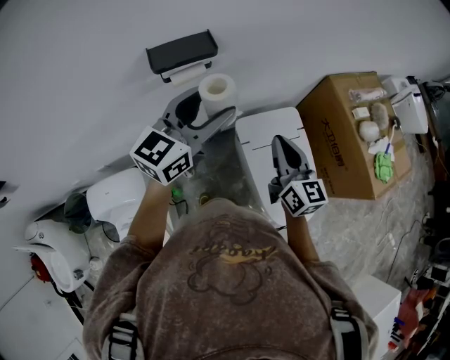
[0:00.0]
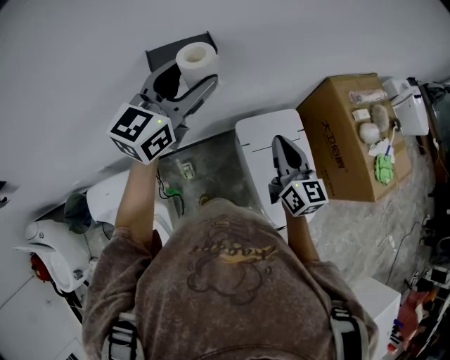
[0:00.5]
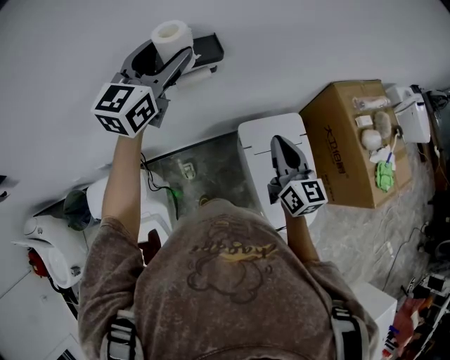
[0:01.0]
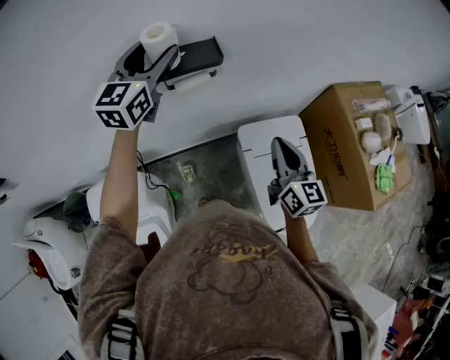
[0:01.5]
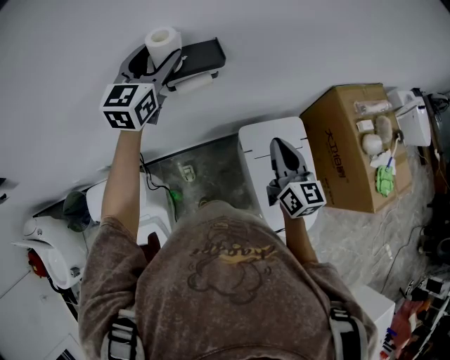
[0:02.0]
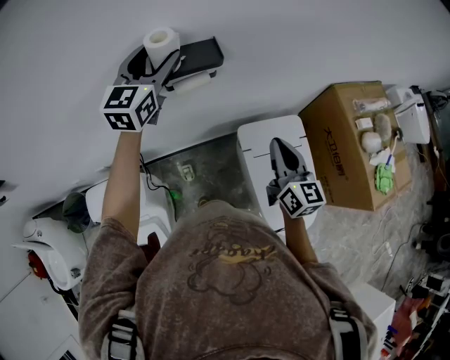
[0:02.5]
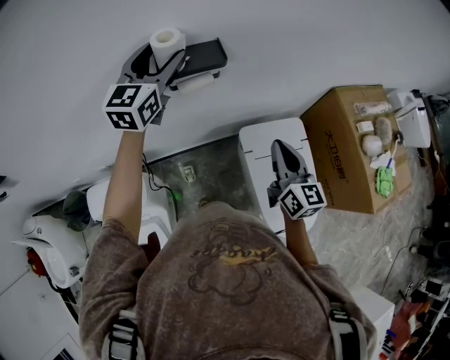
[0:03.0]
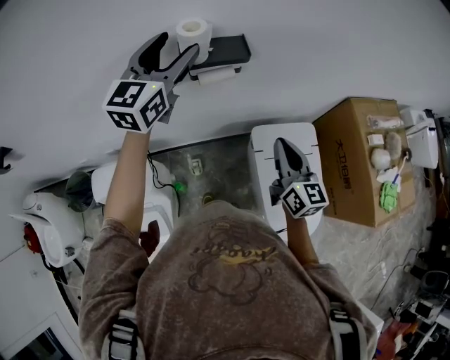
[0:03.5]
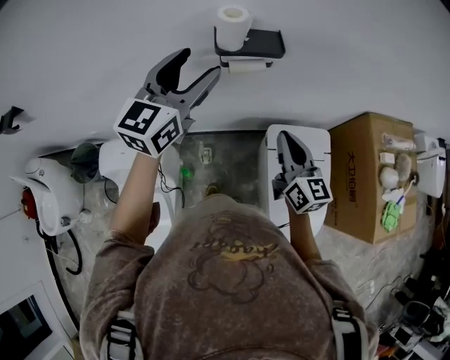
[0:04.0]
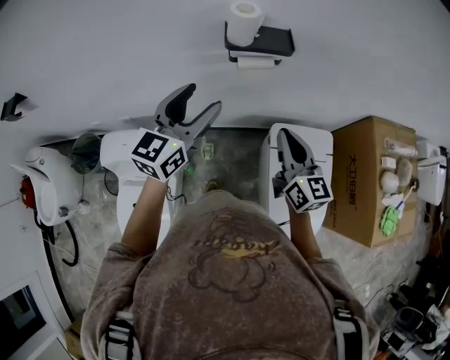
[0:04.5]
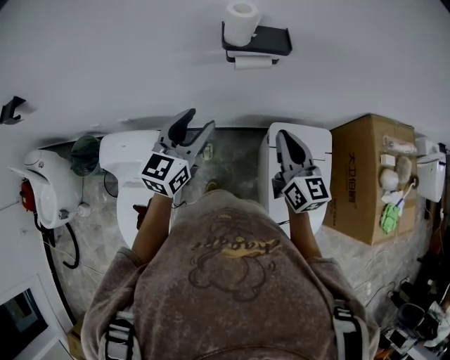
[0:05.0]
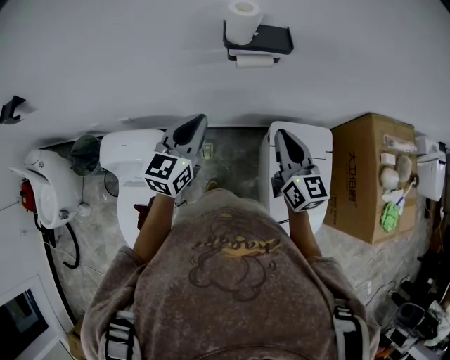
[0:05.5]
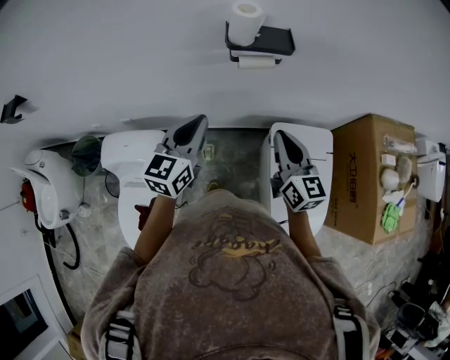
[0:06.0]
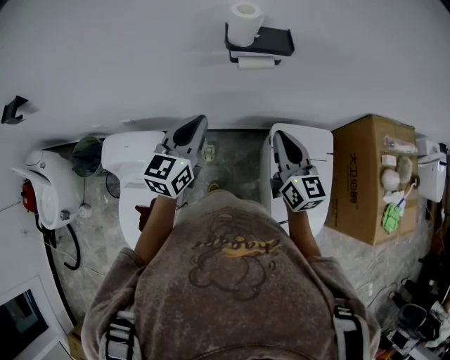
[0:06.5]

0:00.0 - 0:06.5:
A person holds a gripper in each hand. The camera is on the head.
0:00.0 - 0:02.0: The left gripper is displaced to the left and forward by roughly 20 cm, and rotates about 30 degrees.
0:02.0 - 0:04.5: The right gripper is displaced to the left by roughly 10 cm. Meanwhile the left gripper moves backward, some 20 cm.
0:04.5 - 0:06.5: The left gripper is displaced downward by approximately 5 cm, and closes.

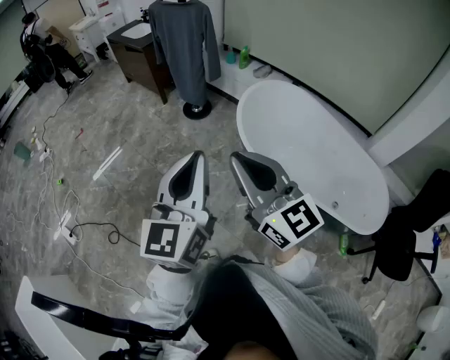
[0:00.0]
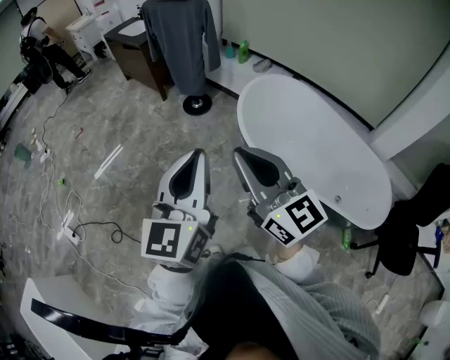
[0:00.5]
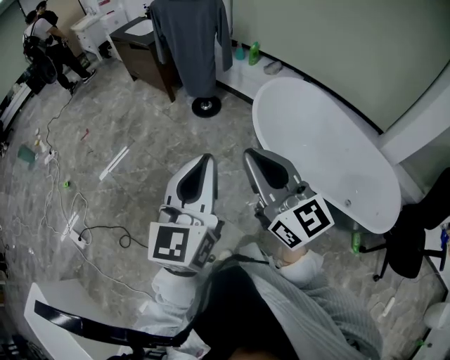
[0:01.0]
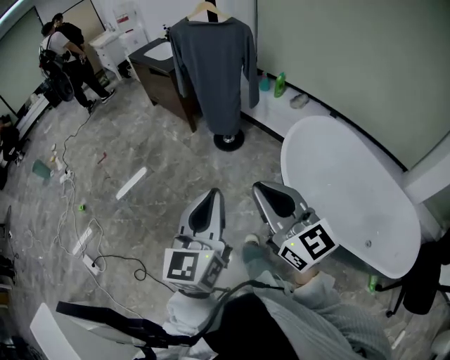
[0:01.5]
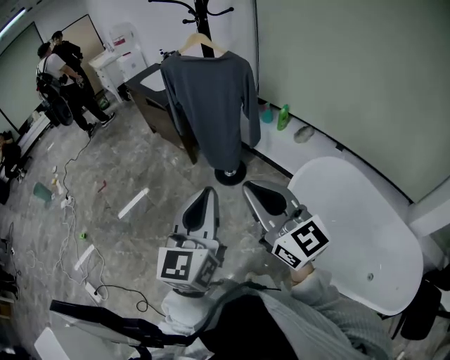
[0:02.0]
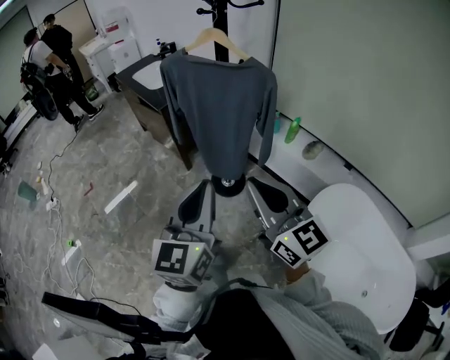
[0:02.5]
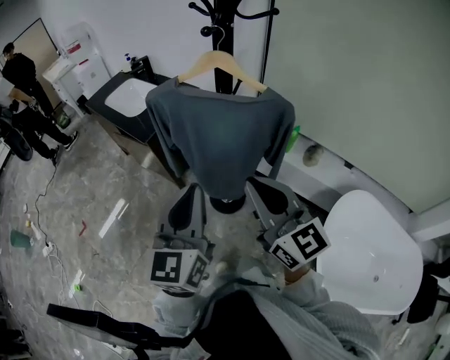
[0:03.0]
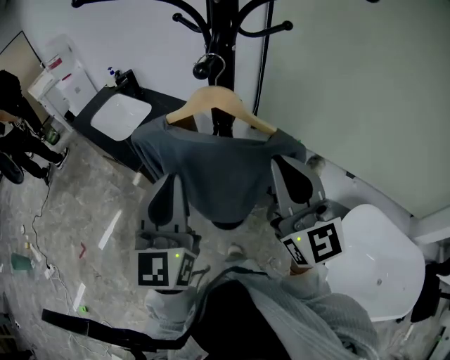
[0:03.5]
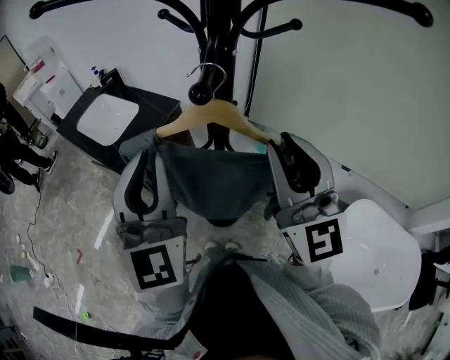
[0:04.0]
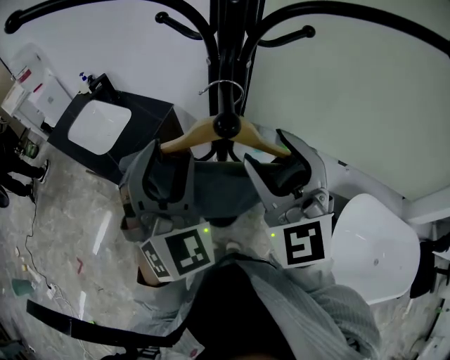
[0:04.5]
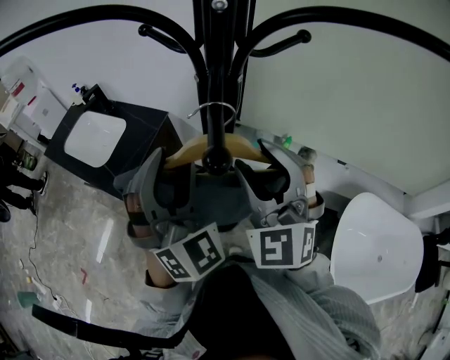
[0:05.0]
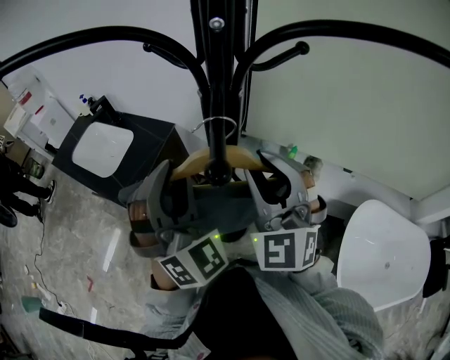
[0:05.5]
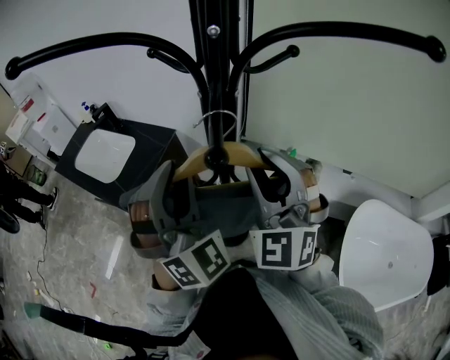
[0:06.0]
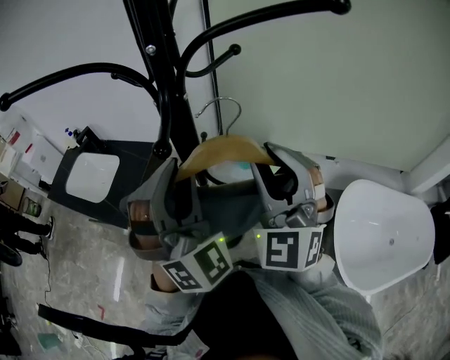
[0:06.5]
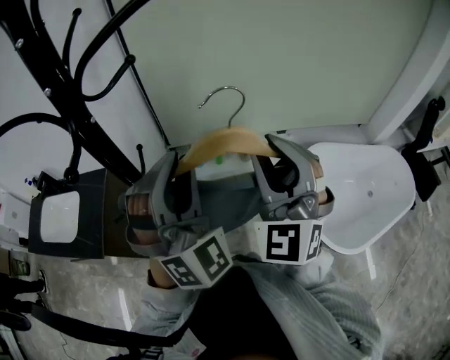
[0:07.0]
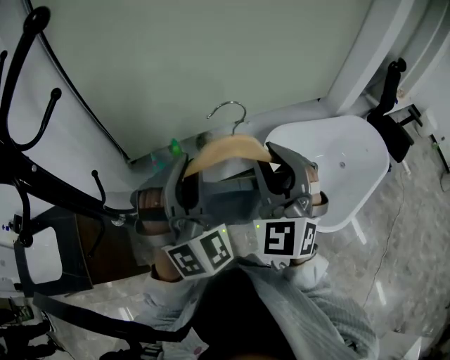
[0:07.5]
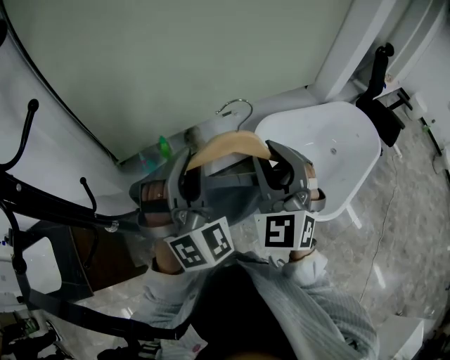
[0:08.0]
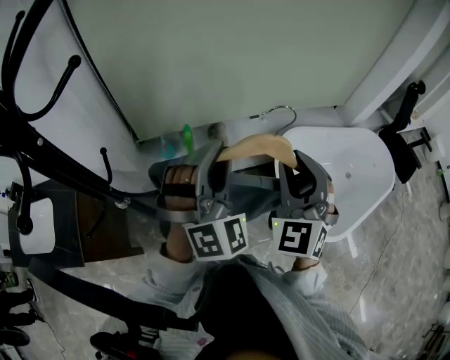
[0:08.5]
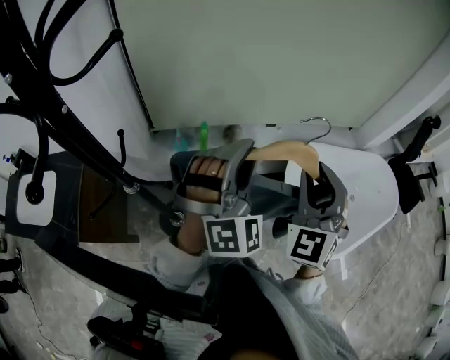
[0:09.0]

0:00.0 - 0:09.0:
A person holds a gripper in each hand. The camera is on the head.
0:00.0 - 0:02.0: Both grippers are carried forward, roughly 40 cm.
0:02.0 - 0:04.5: The two grippers travel together, forward, approximately 70 cm. The right gripper swivels about 50 degrees, and opens its fingers. Meanwhile the left gripper twists some 50 degrees clockwise, seen from behind, and opens up.
0:04.5 - 0:07.0: The left gripper moves roughly 20 cm, changes its angle by some 30 degrees, and closes its fingers, while the right gripper ends up some 20 cm from where it was, turns by approximately 40 degrees, and closes.
0:07.0 - 0:09.0: The left gripper travels to the right, forward and downward by roughly 20 cm, and rotates some 20 degrees. Meanwhile the right gripper heads to the right and downward, covering roughly 15 cm, and changes its angle by some 20 degrees.

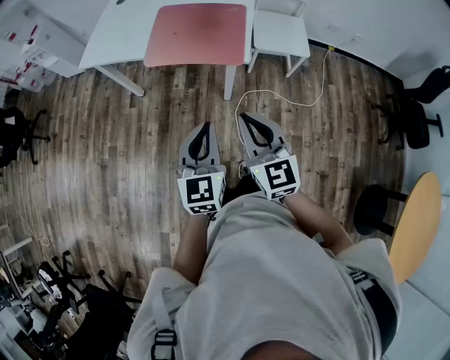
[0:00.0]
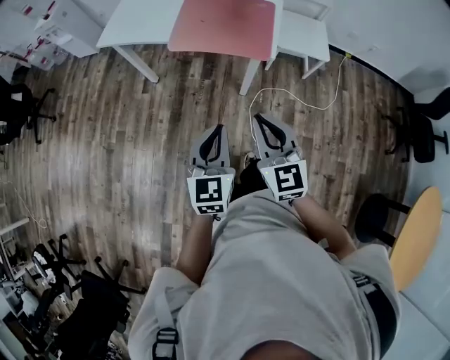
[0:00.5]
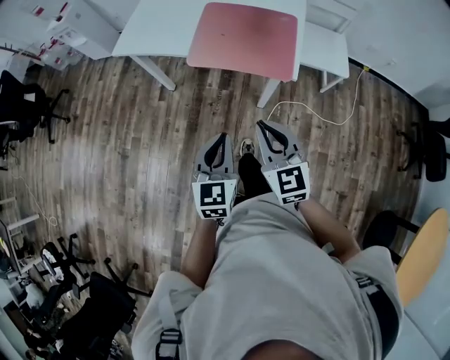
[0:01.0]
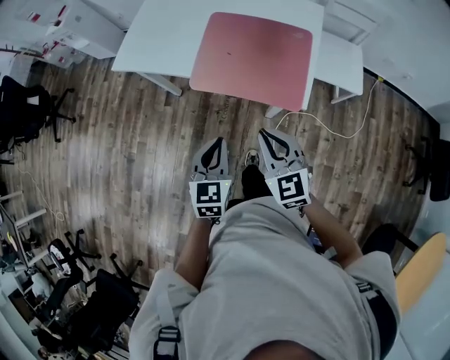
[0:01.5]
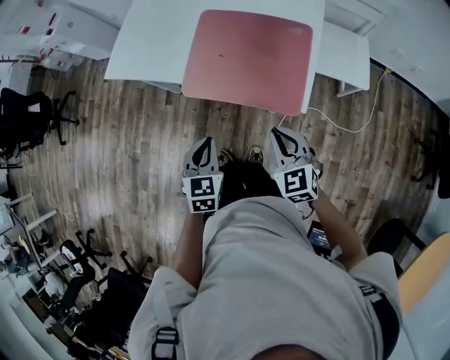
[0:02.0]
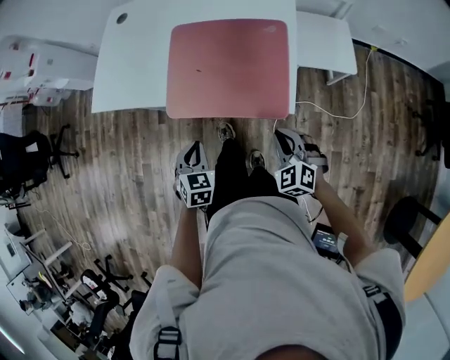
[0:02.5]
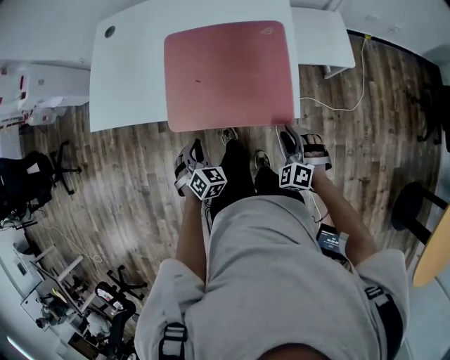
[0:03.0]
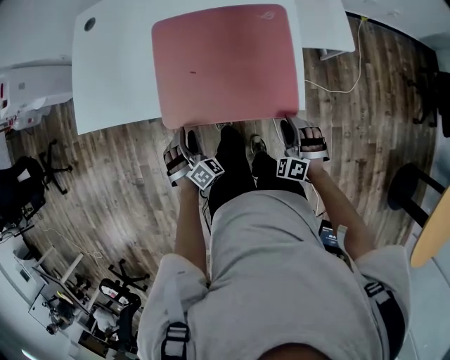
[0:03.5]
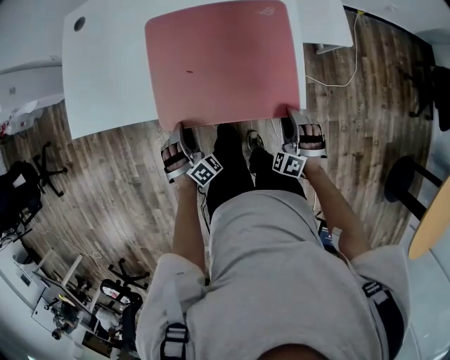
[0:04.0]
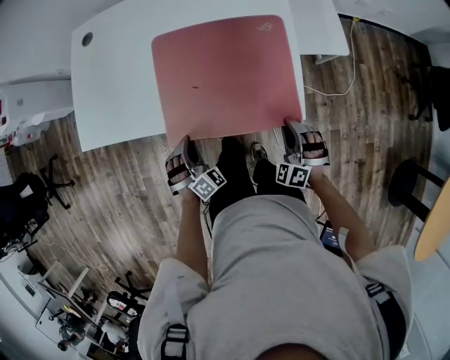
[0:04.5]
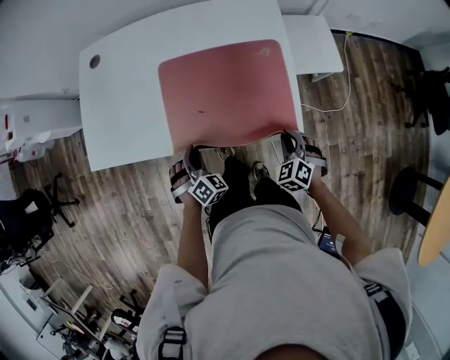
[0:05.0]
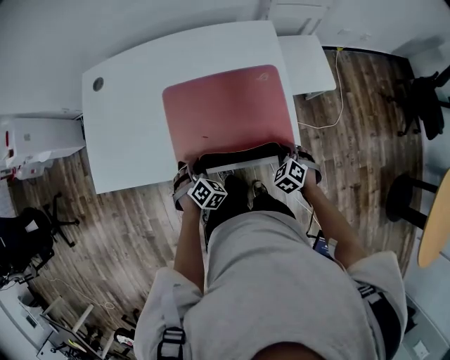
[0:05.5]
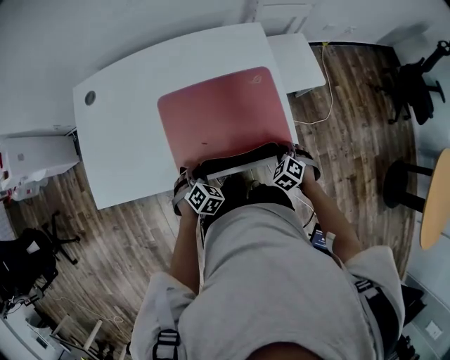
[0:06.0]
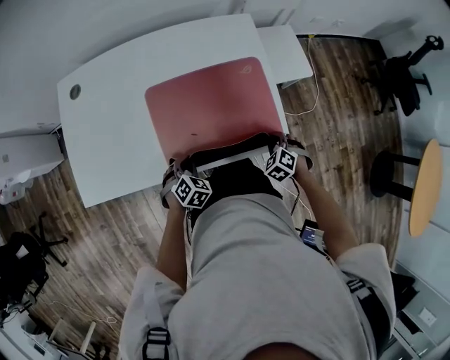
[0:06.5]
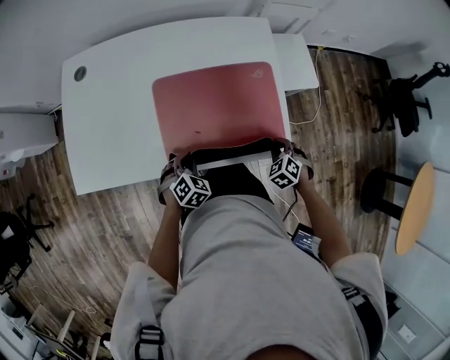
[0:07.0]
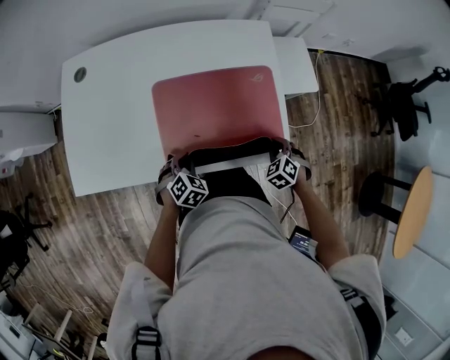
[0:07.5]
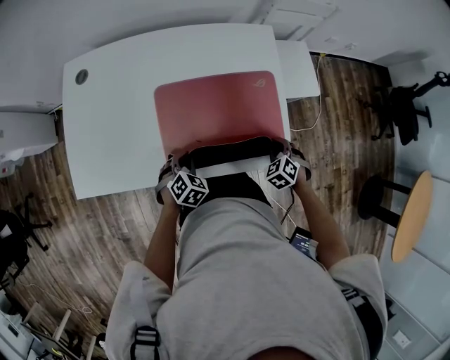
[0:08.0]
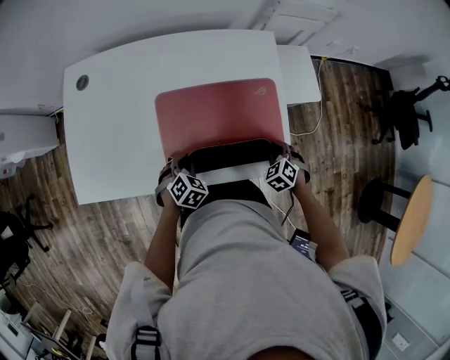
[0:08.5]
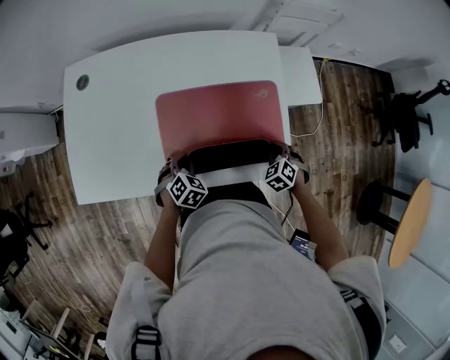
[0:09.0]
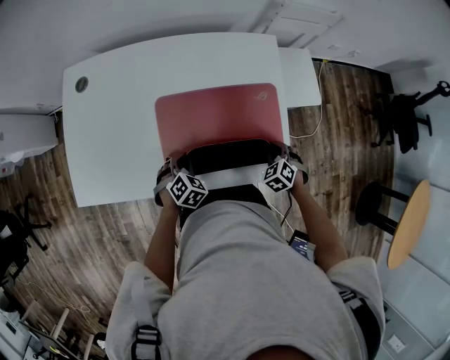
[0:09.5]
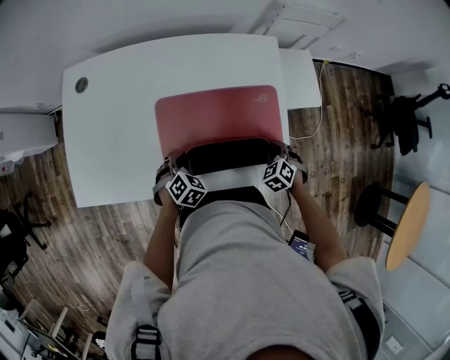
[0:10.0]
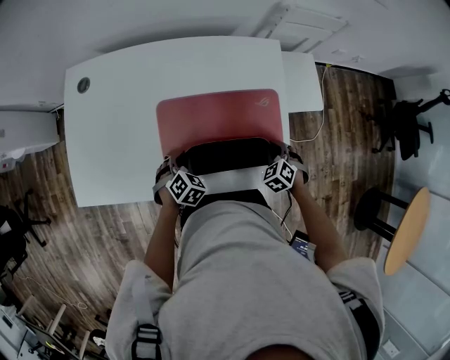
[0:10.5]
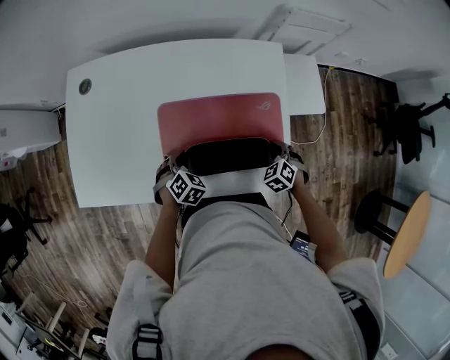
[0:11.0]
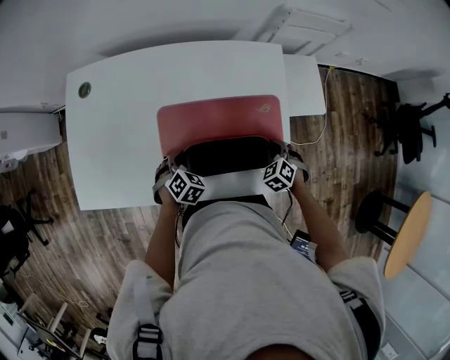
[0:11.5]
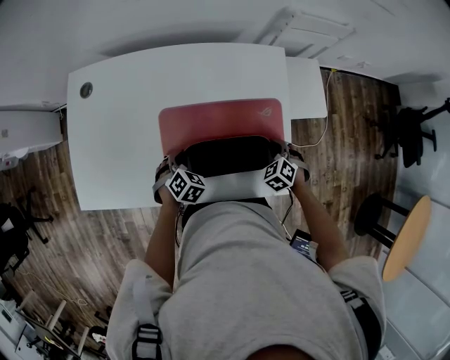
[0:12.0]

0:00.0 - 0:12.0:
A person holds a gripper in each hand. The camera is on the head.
0:00.0 - 0:02.0: Both grippers move forward and downward, some 30 cm. The left gripper swivels about 30 degrees, while the right gripper rotates about 20 degrees.
0:02.0 - 0:04.0: The left gripper goes some 25 cm downward and forward, rolls clockwise, seen from behind, by roughly 60 degrees, and opens; the right gripper goes about 20 cm downward, forward and to the right, swivels approximately 50 degrees, and opens up.
0:04.0 - 0:06.0: The grippers both shift forward by approximately 10 cm. The left gripper rotates about 40 degrees, and closes. The right gripper rotates approximately 40 degrees, and closes up.
0:06.0 - 0:08.0: There are only small adjustments of the grippers.
0:08.0 - 0:10.0: Both grippers move forward, approximately 5 cm.
0:10.0 - 0:12.0: The right gripper shifts roughly 5 cm forward. The left gripper moves roughly 5 cm.
